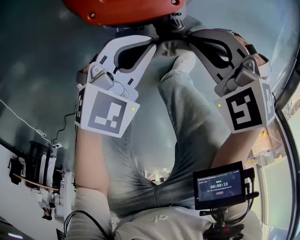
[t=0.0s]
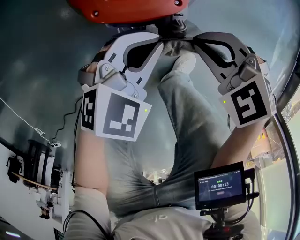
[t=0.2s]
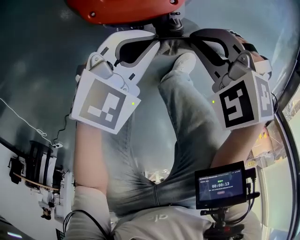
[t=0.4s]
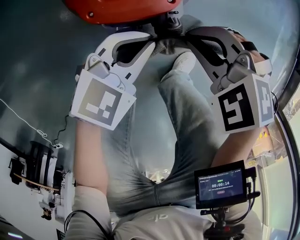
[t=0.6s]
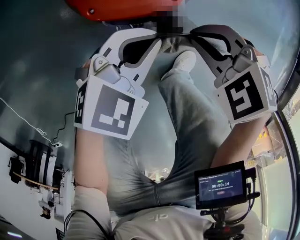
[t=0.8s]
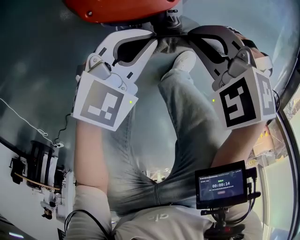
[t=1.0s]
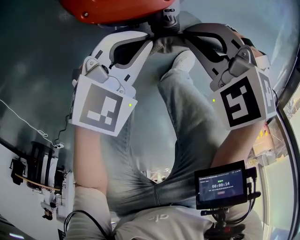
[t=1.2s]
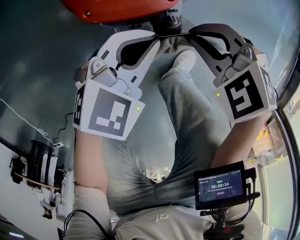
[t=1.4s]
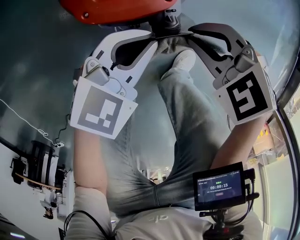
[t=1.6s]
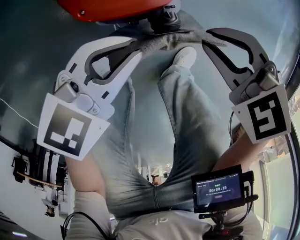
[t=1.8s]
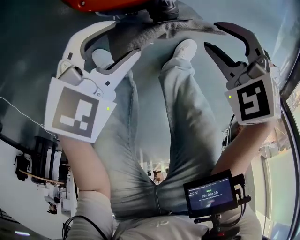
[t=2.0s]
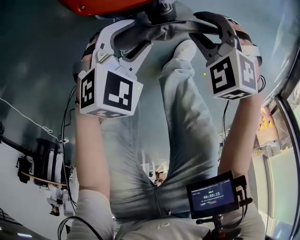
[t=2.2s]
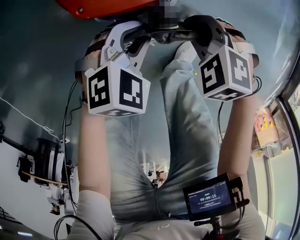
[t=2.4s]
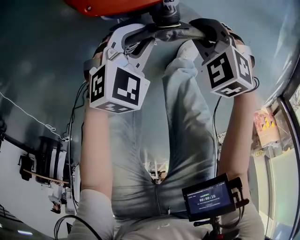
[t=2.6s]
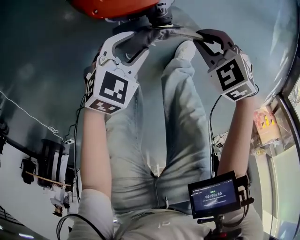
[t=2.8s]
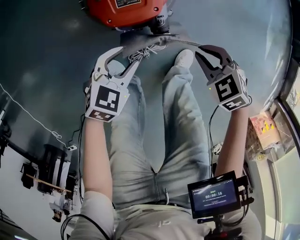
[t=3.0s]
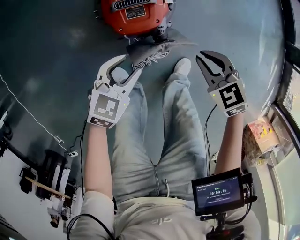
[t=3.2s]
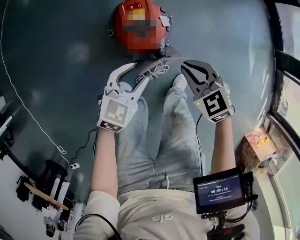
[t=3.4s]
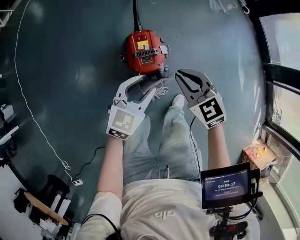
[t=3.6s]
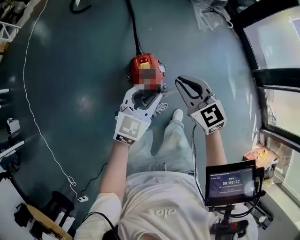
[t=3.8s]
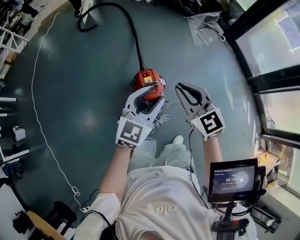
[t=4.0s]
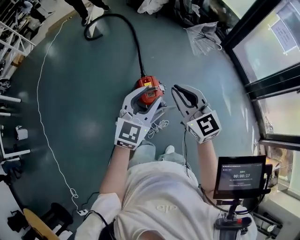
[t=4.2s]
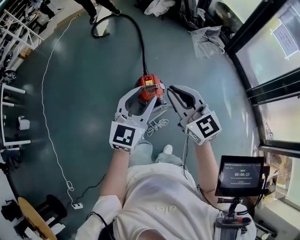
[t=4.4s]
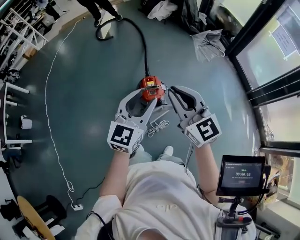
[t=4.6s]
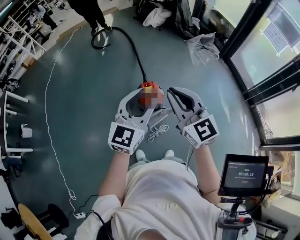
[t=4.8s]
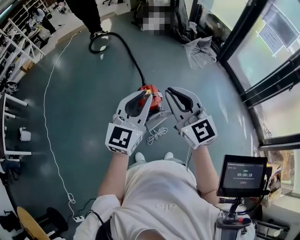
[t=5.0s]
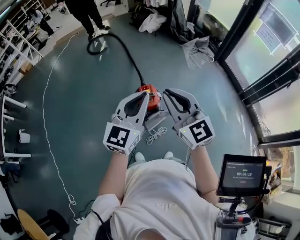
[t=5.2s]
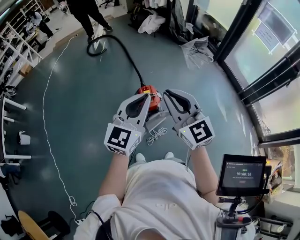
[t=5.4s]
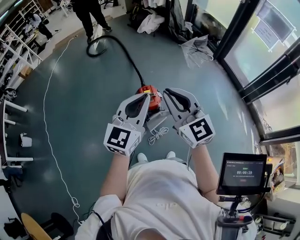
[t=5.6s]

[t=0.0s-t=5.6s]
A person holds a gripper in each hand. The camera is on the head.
t=0.0s to t=1.4s: The grippers move only a little.
t=1.4s to t=2.8s: The left gripper moves downward, approximately 5 cm, and opens; the right gripper ends up approximately 10 cm from where it was, and opens, then closes again.
t=2.8s to t=4.2s: Both grippers move upward, roughly 80 cm. The right gripper tilts its fingers approximately 60 degrees upward, while the left gripper tilts its fingers some 40 degrees upward.
t=4.2s to t=5.6s: The left gripper moves upward and backward, roughly 20 cm, and closes up. The right gripper goes some 20 cm backward and upward.

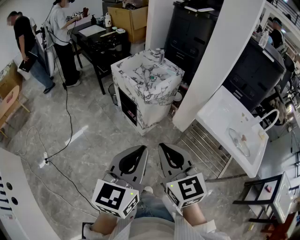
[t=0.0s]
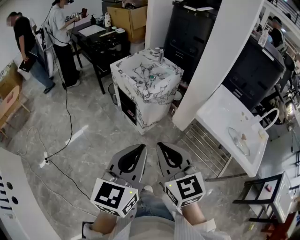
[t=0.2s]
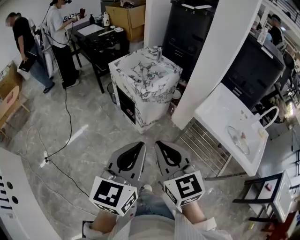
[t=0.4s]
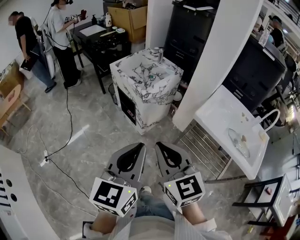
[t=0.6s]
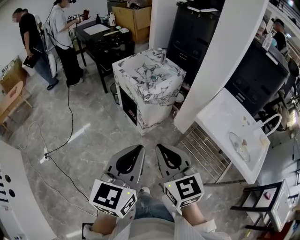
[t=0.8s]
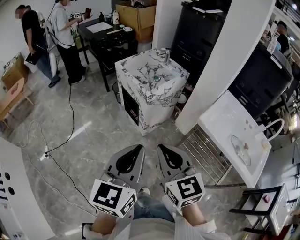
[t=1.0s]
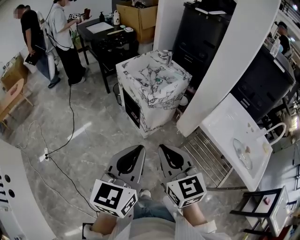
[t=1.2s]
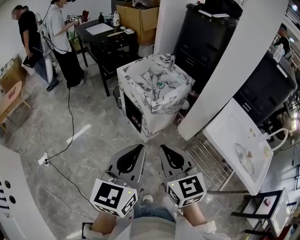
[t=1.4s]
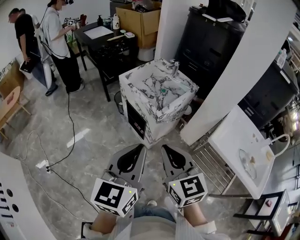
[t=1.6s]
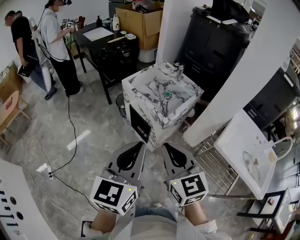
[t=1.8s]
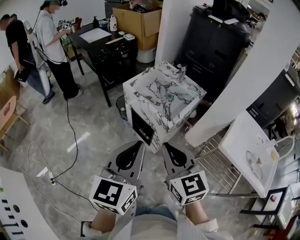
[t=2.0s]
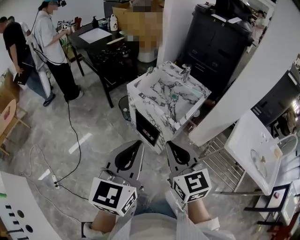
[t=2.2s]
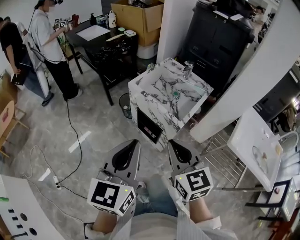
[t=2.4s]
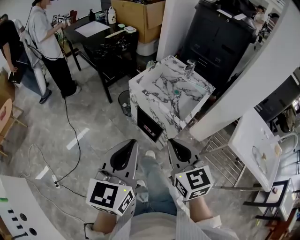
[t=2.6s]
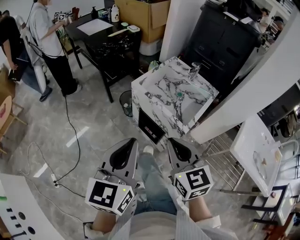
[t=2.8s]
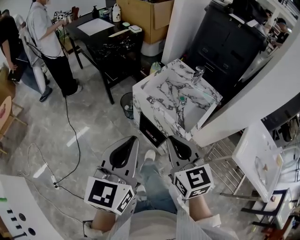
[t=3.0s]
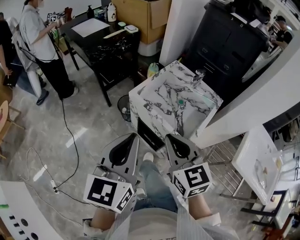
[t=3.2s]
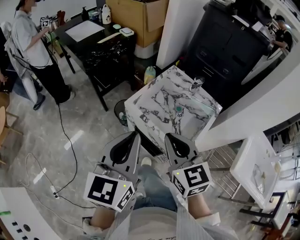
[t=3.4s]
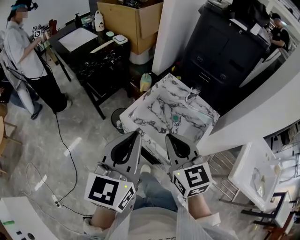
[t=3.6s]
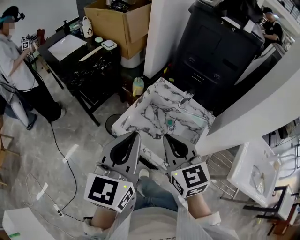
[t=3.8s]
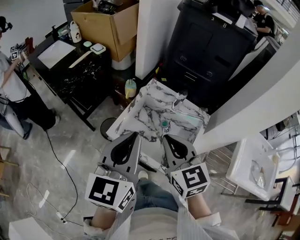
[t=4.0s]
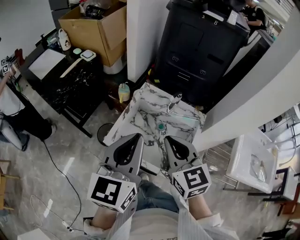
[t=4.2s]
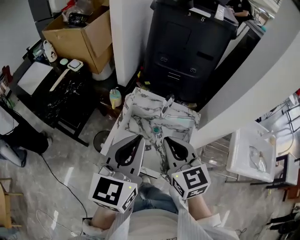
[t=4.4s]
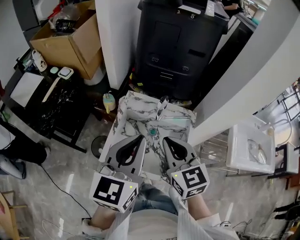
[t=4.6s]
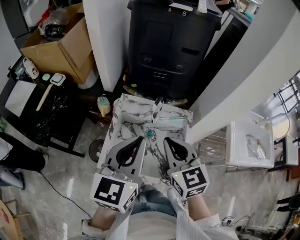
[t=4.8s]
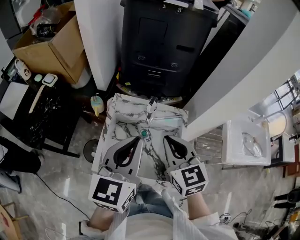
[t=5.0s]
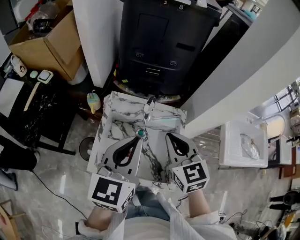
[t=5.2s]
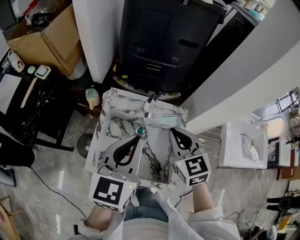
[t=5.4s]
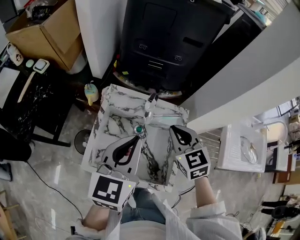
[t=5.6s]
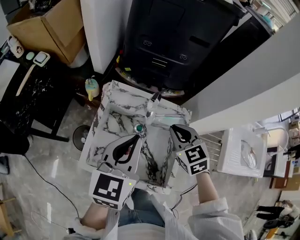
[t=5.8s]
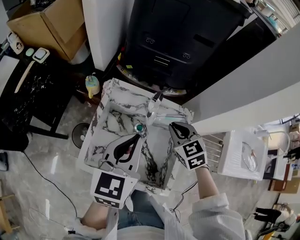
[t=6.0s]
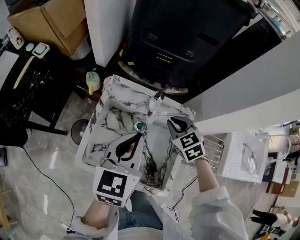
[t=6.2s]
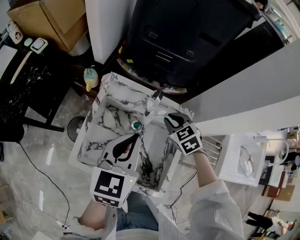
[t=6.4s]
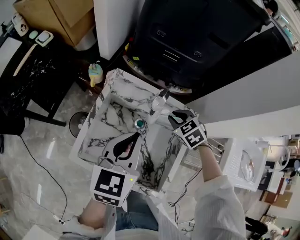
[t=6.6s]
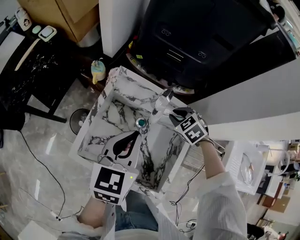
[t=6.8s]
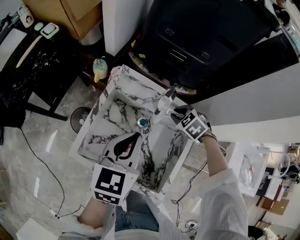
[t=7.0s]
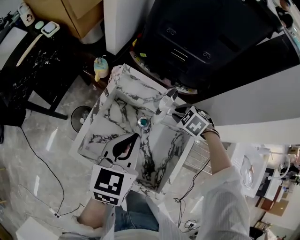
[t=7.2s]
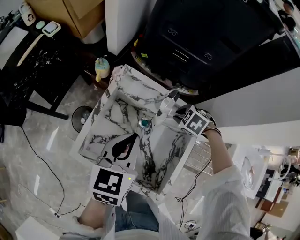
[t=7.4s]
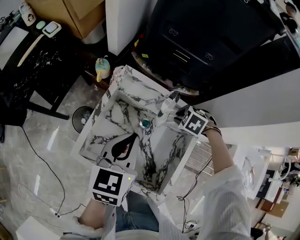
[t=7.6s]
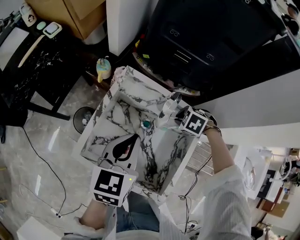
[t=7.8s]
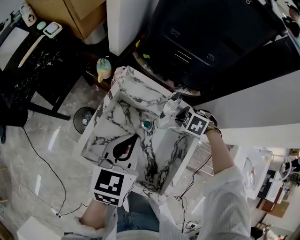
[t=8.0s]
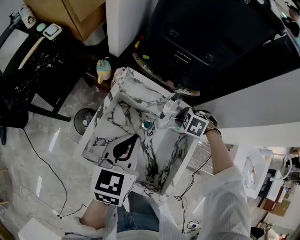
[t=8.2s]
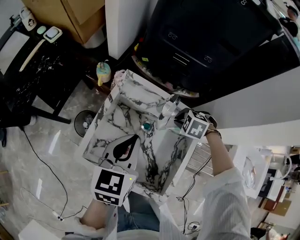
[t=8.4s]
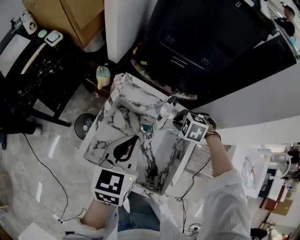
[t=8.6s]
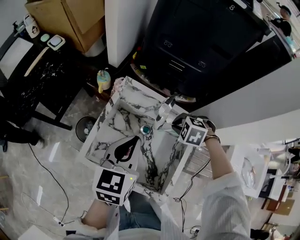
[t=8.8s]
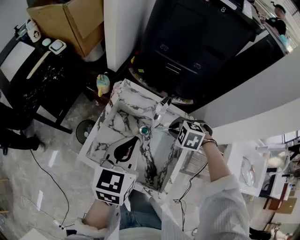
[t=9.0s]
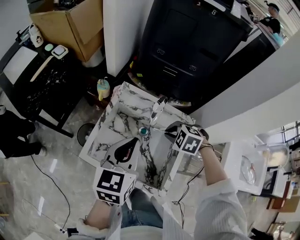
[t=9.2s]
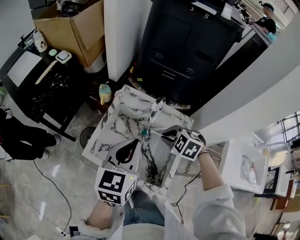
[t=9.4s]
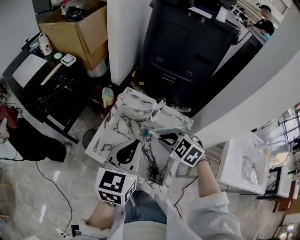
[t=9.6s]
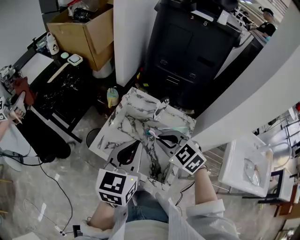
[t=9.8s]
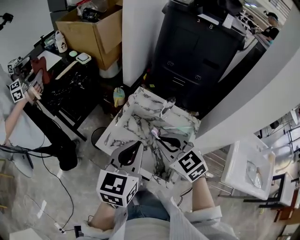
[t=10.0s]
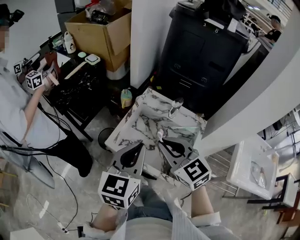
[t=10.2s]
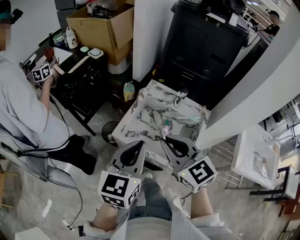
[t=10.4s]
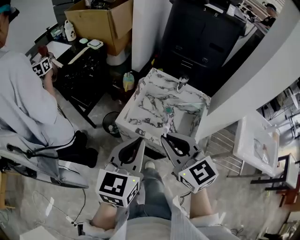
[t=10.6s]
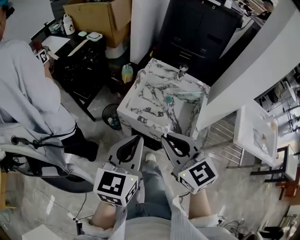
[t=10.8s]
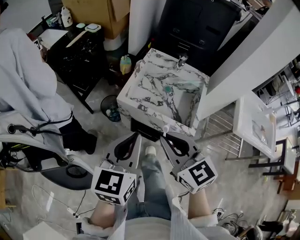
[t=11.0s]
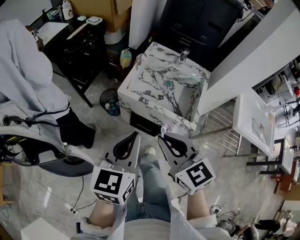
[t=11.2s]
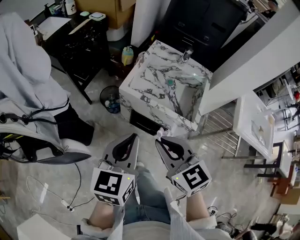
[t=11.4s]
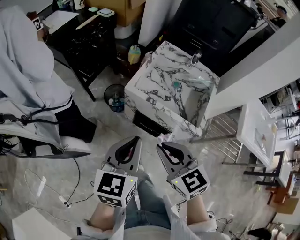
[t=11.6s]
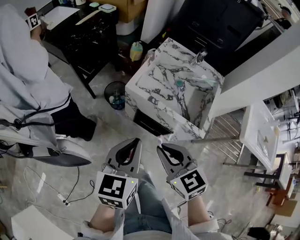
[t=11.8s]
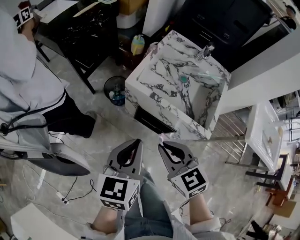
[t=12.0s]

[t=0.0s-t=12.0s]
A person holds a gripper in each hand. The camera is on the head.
t=0.0s to t=1.6s: The left gripper is displaced forward and to the left by some 15 cm, while the right gripper heads forward, covering approximately 15 cm.
t=1.6s to t=3.0s: The grippers both shift forward and to the left by some 25 cm.
t=3.0s to t=4.4s: Both grippers move forward, some 30 cm. The left gripper turns by approximately 30 degrees; the right gripper swivels some 20 degrees.
t=4.4s to t=6.0s: The left gripper goes roughly 15 cm forward and downward. Meanwhile the right gripper goes approximately 25 cm downward, forward and to the right, and rotates approximately 30 degrees.
t=6.0s to t=7.6s: The left gripper travels downward by roughly 5 cm. Meanwhile the right gripper heads downward, covering approximately 15 cm, and points its fingers approximately 40 degrees further downward.
t=7.6s to t=9.0s: The right gripper goes roughly 5 cm upward.
t=9.0s to t=10.4s: The right gripper ends up approximately 35 cm from where it was, and points its fingers some 60 degrees further upward. Meanwhile the left gripper ends up some 20 cm from where it was.
t=10.4s to t=12.0s: The two grippers go approximately 25 cm downward, backward and to the left.

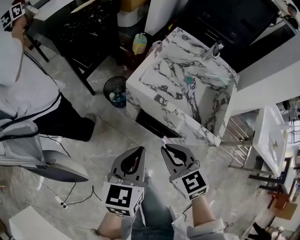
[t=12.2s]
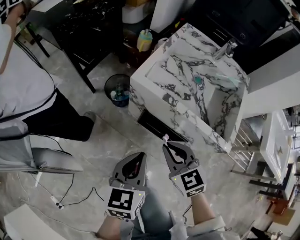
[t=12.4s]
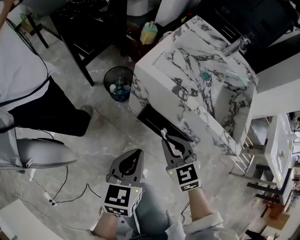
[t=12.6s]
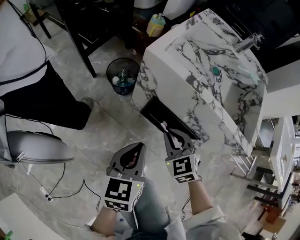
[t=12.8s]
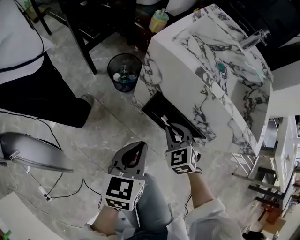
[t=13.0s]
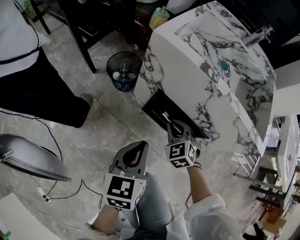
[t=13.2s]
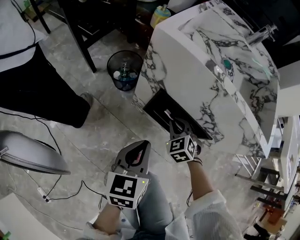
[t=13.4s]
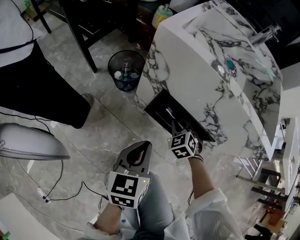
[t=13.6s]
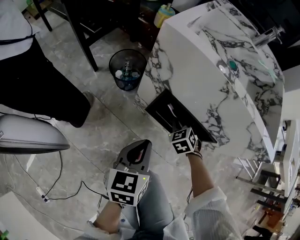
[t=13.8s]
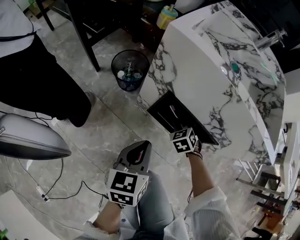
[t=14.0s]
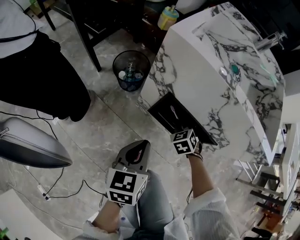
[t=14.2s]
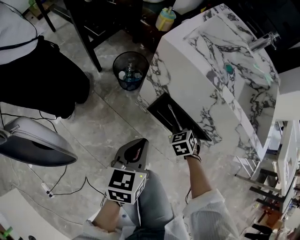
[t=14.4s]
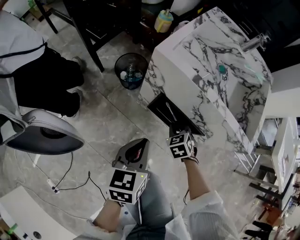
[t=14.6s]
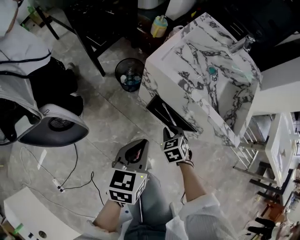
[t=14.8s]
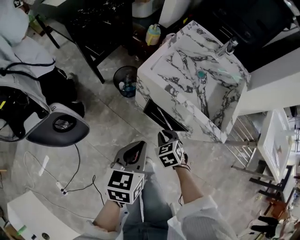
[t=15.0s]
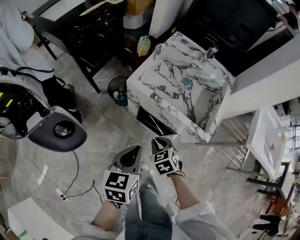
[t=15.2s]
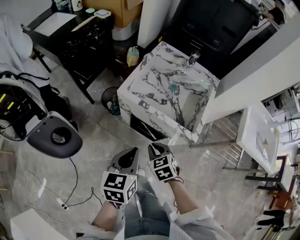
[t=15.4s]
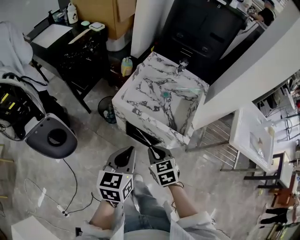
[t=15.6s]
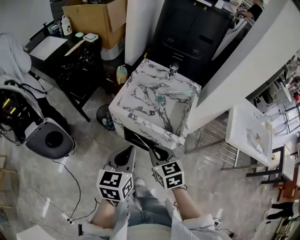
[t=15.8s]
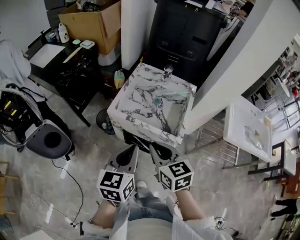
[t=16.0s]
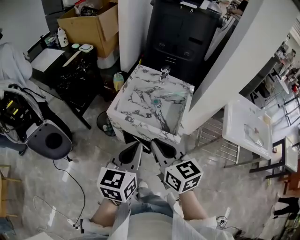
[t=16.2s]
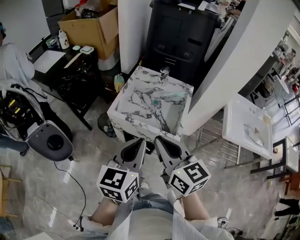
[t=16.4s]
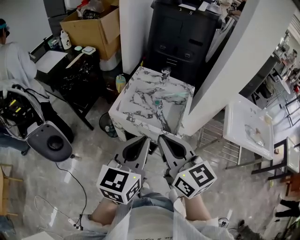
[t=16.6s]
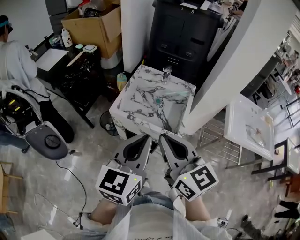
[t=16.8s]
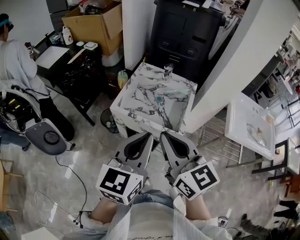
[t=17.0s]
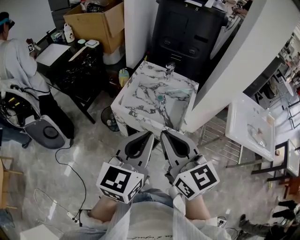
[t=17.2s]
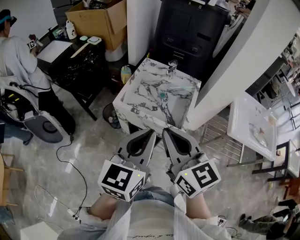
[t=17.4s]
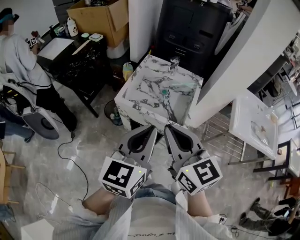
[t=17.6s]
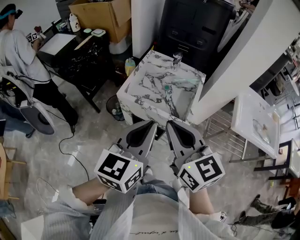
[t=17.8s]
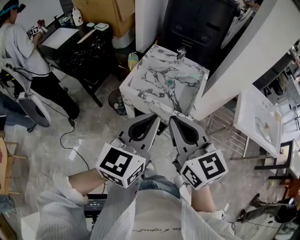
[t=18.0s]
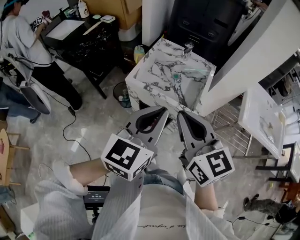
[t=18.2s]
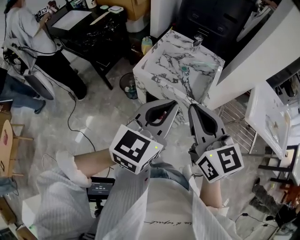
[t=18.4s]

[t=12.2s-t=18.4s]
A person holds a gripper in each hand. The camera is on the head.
t=12.2s to t=13.8s: The grippers both shift downward by about 35 cm. The right gripper changes its angle by some 30 degrees.
t=13.8s to t=15.4s: The right gripper moves upward and backward, some 35 cm, and turns by roughly 20 degrees, while the left gripper goes some 30 cm upward.
t=15.4s to t=16.8s: The left gripper heads upward, covering about 20 cm, and changes its angle by about 30 degrees. Meanwhile the right gripper goes about 35 cm upward, and tips its fingers upward by about 50 degrees.
t=16.8s to t=18.4s: There are only small adjustments of the grippers.
